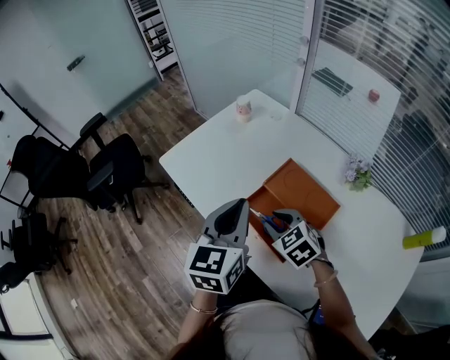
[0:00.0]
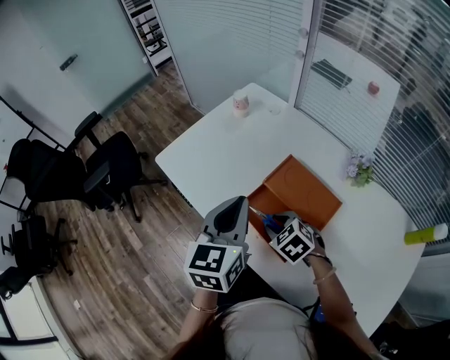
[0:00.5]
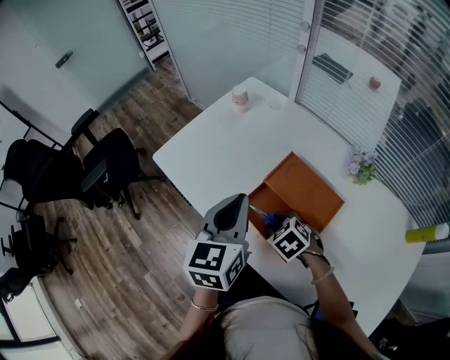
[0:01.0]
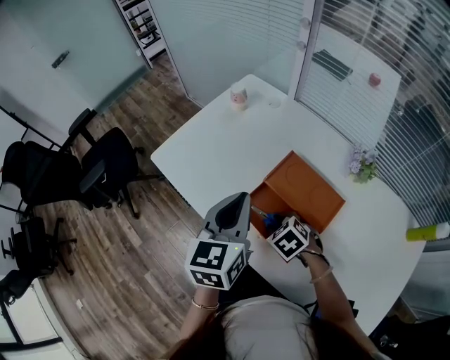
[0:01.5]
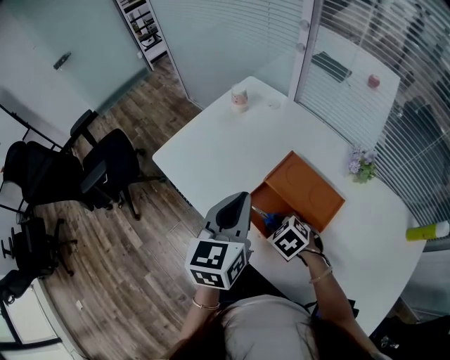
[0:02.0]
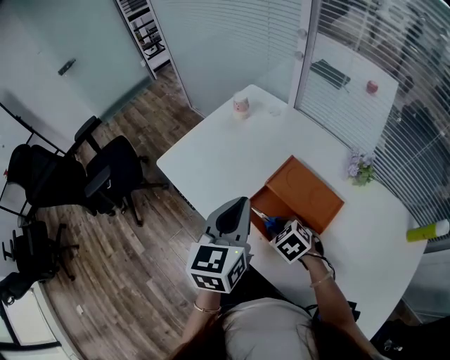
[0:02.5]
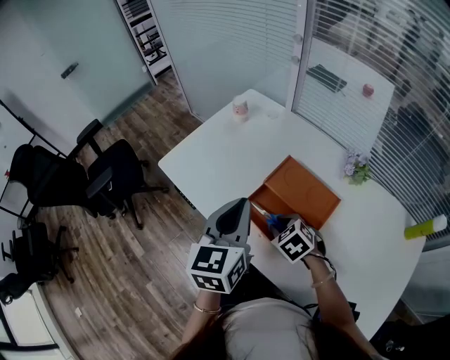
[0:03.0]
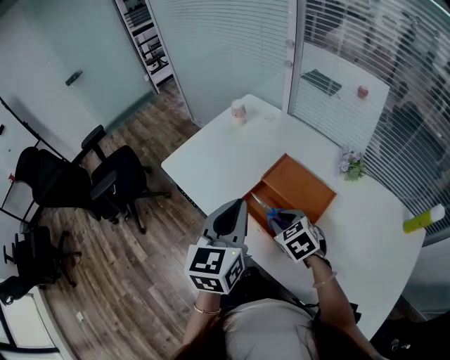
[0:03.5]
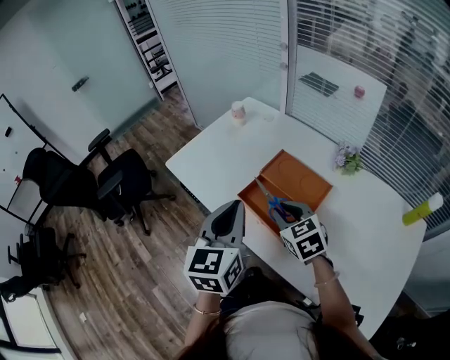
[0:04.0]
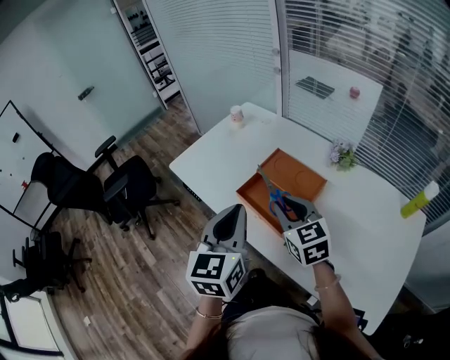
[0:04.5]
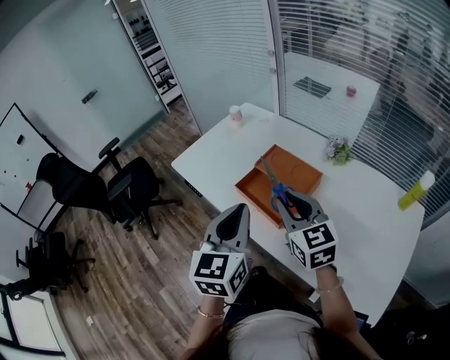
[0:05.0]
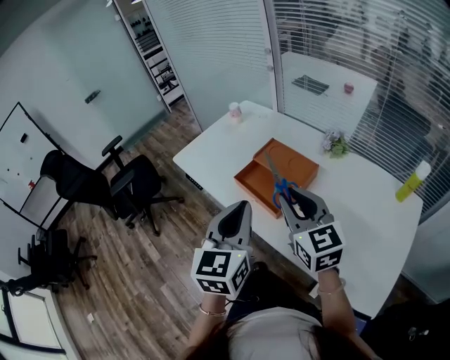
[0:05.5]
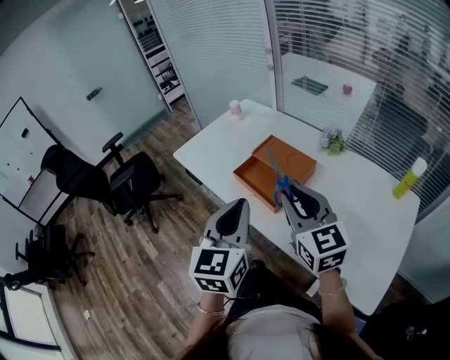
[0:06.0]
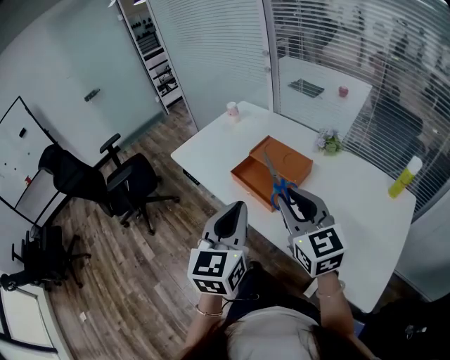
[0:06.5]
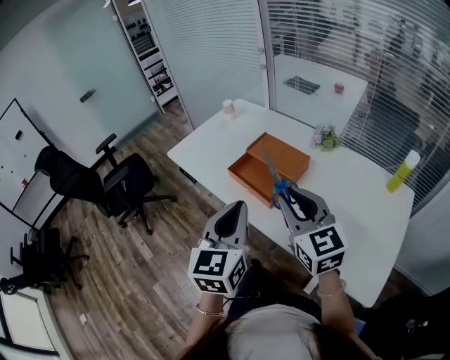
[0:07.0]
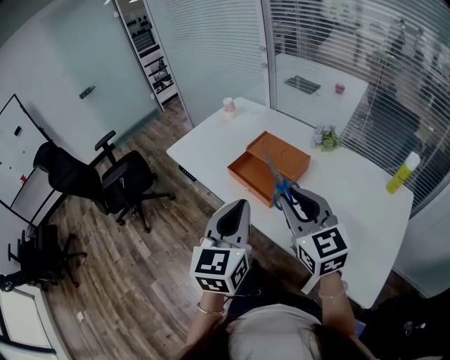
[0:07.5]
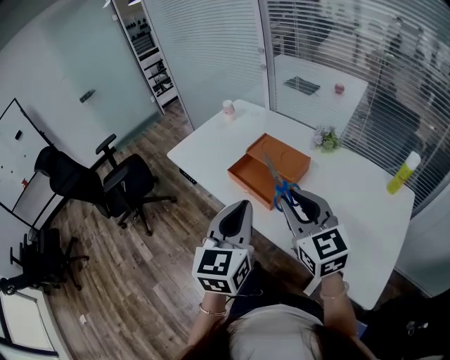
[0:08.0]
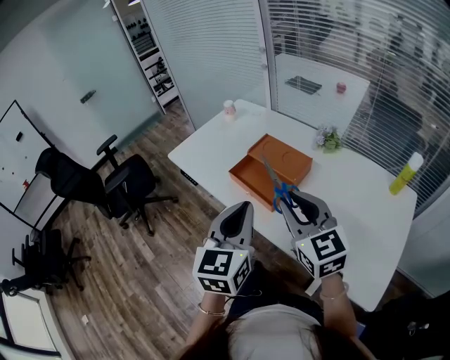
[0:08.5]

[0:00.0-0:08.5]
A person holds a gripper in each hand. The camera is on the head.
0:00.0 to 0:02.0: The right gripper shifts roughly 10 cm downward.
0:02.0 to 0:04.0: The right gripper moves upward, approximately 15 cm, and turns by approximately 30 degrees. Meanwhile the left gripper moves backward, approximately 10 cm.
0:04.0 to 0:06.5: The right gripper goes approximately 25 cm backward and upward, and rotates about 30 degrees. The left gripper shifts roughly 15 cm backward.
0:06.5 to 0:08.5: There are only small adjustments of the grippers.

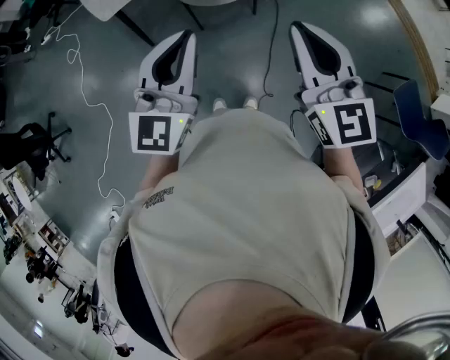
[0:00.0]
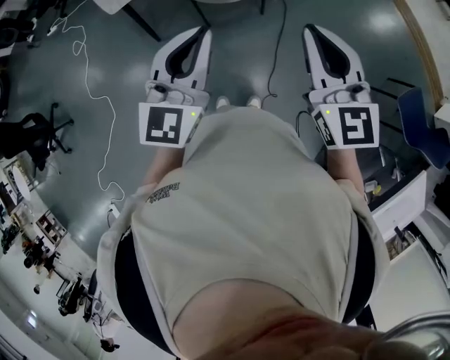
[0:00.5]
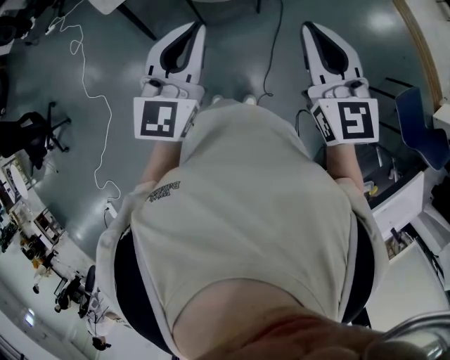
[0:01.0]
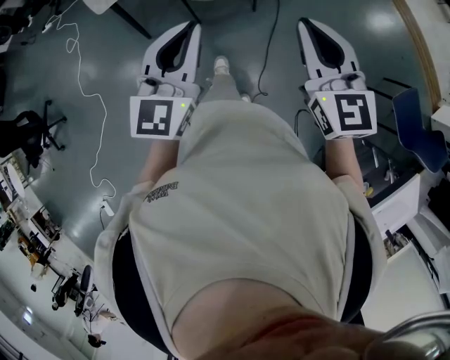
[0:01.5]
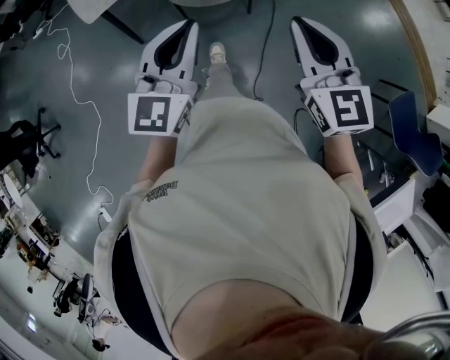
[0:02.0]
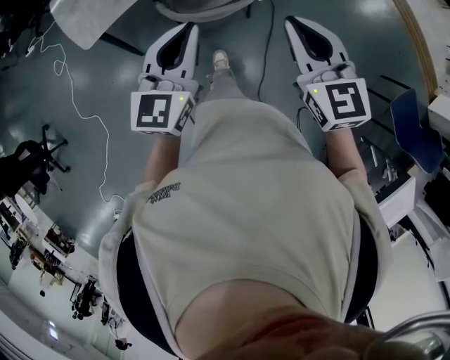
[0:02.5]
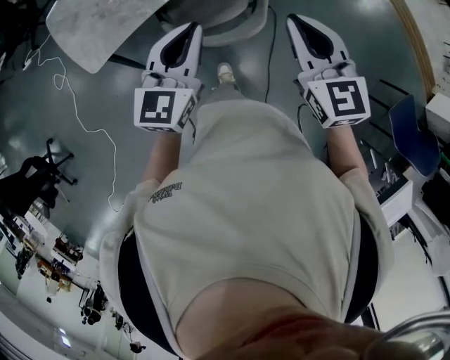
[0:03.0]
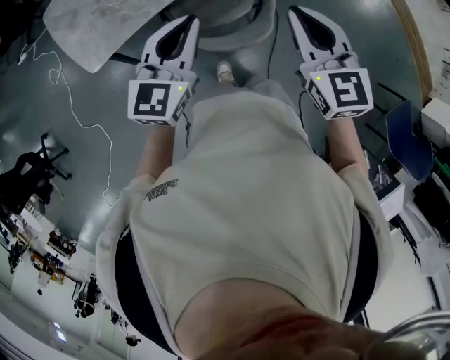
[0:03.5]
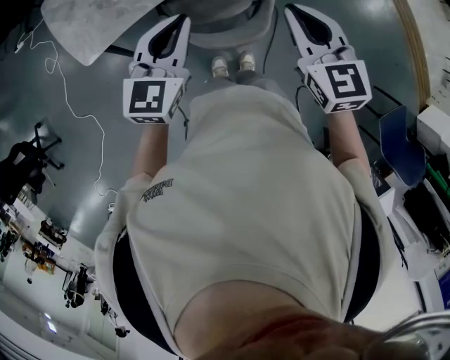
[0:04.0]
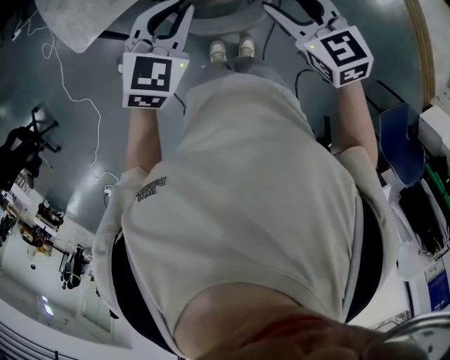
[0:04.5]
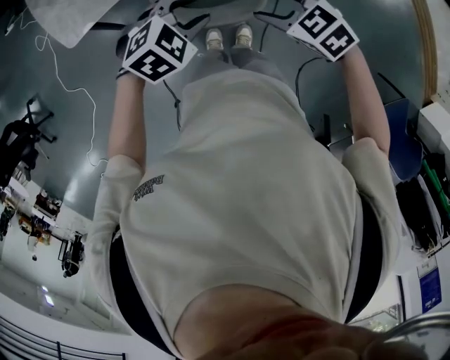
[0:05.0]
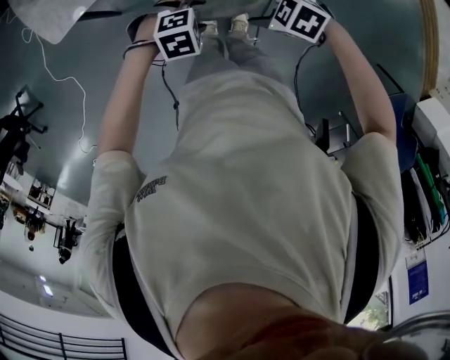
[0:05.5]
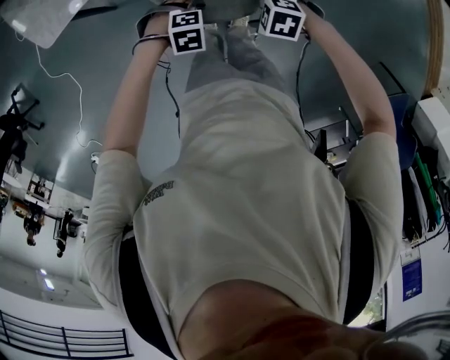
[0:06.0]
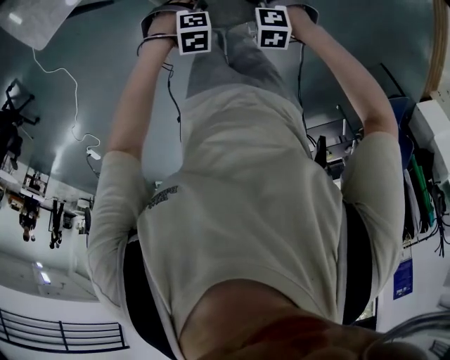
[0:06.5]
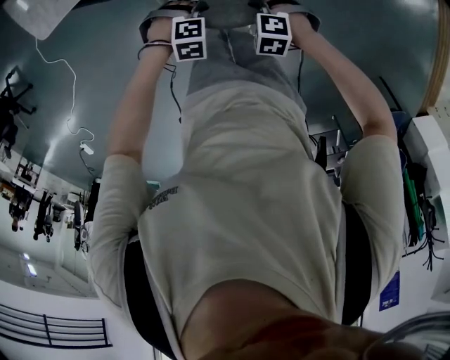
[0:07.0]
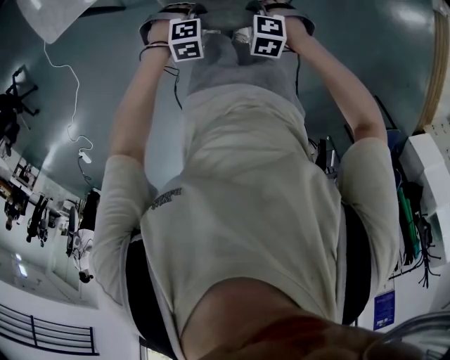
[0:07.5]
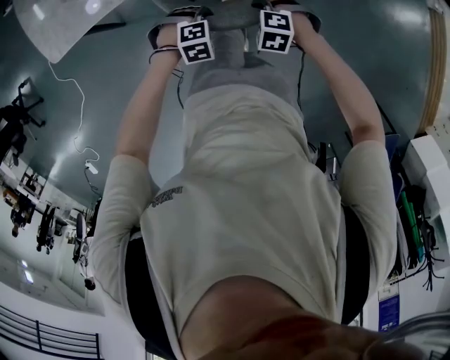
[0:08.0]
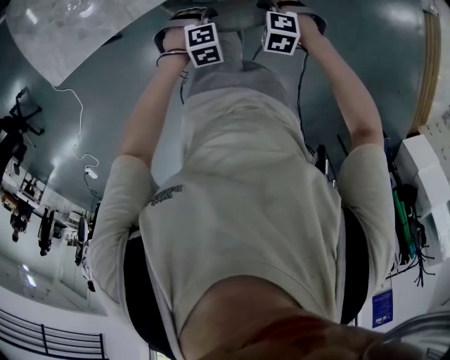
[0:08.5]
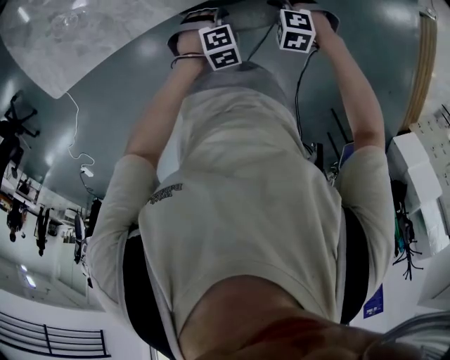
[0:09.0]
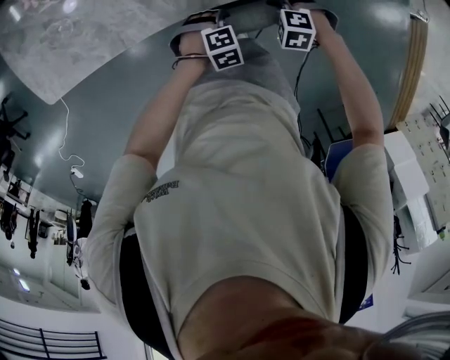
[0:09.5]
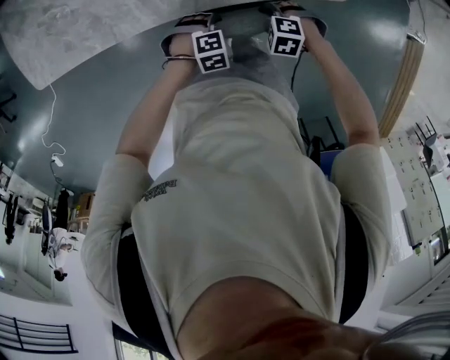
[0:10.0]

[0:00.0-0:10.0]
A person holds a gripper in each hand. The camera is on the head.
0:00.0 to 0:02.0: The two grippers go some 15 cm forward and downward.
0:02.0 to 0:04.0: The grippers both shift forward by about 35 cm.
0:04.0 to 0:06.0: Both grippers move downward, approximately 40 cm. The left gripper tips its fingers downward by roughly 60 degrees, and opens its fingers; the right gripper tilts its fingers approximately 40 degrees downward, and opens.
0:06.0 to 0:08.0: The left gripper ends up roughly 15 cm from where it was, and closes. Meanwhile the right gripper ends up about 15 cm from where it was, changes its angle by some 20 degrees, and closes its fingers.
0:08.0 to 0:10.0: The right gripper moves roughly 25 cm. The left gripper changes place by some 25 cm.

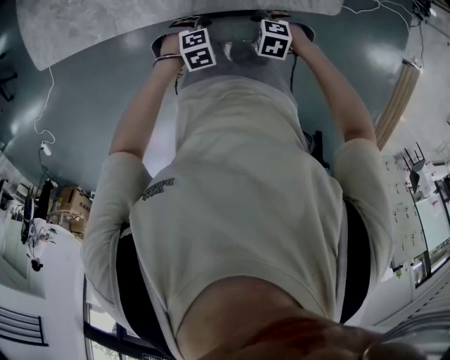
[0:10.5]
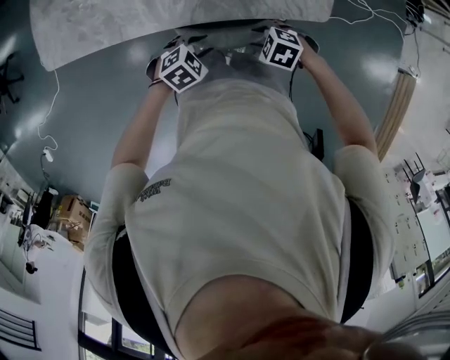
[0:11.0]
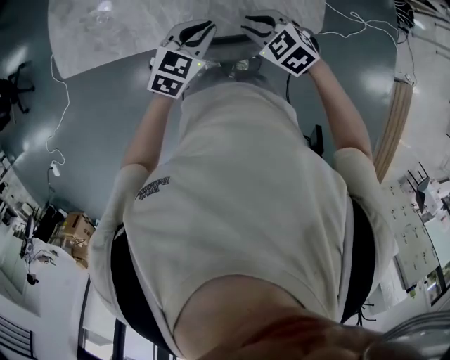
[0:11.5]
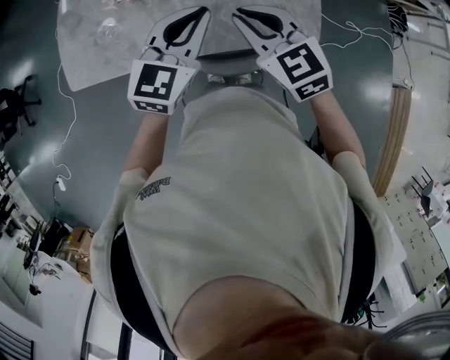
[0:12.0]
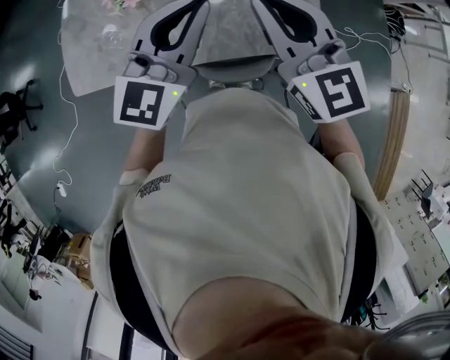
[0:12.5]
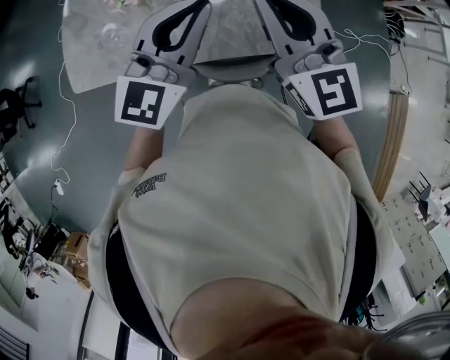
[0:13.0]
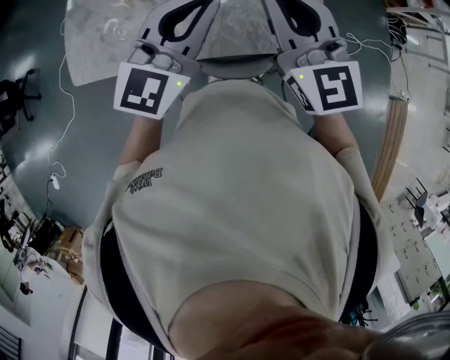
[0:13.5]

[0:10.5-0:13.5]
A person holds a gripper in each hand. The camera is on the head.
0:10.5 to 0:12.0: The grippers both shift upward by some 40 cm. The right gripper tips its fingers upward by roughly 50 degrees, and closes its fingers. Meanwhile the left gripper points its fingers roughly 60 degrees further upward, and closes its fingers.
0:12.0 to 0:13.5: Both grippers move upward, approximately 10 cm. The right gripper swivels about 30 degrees.

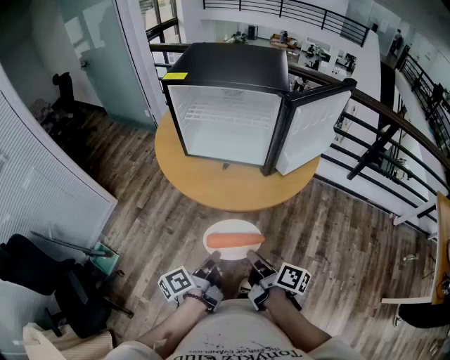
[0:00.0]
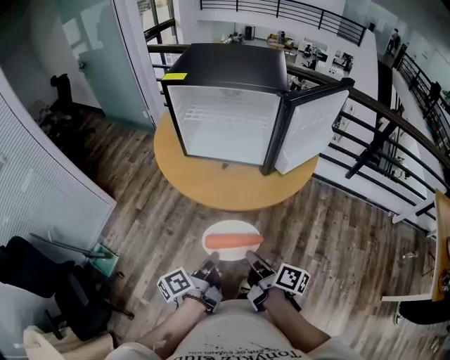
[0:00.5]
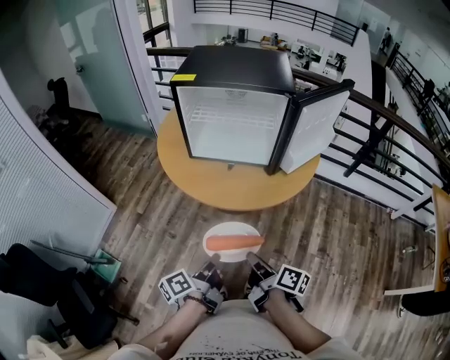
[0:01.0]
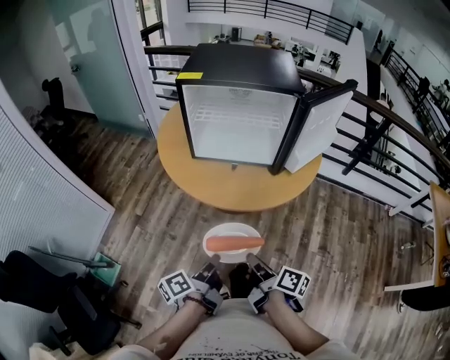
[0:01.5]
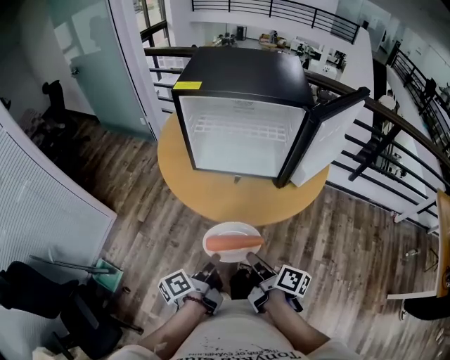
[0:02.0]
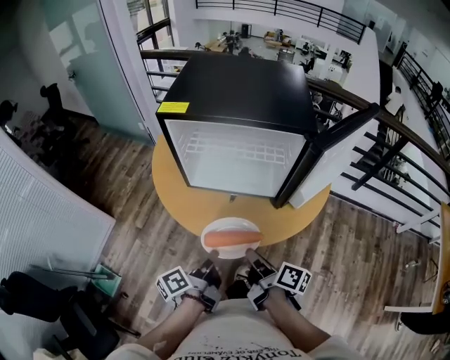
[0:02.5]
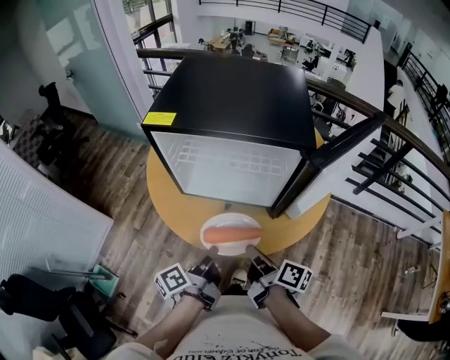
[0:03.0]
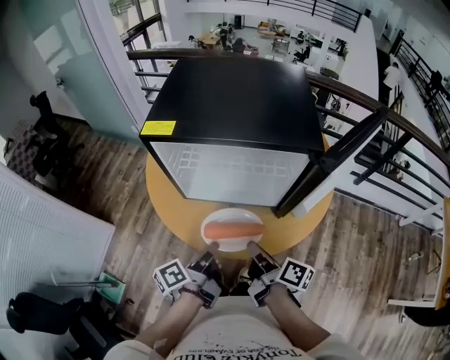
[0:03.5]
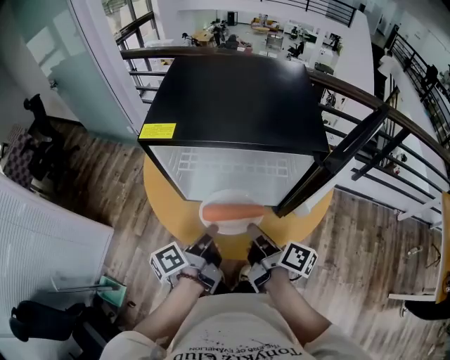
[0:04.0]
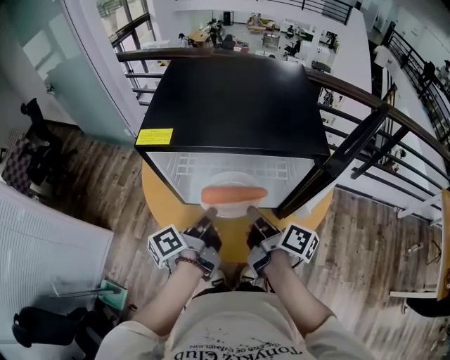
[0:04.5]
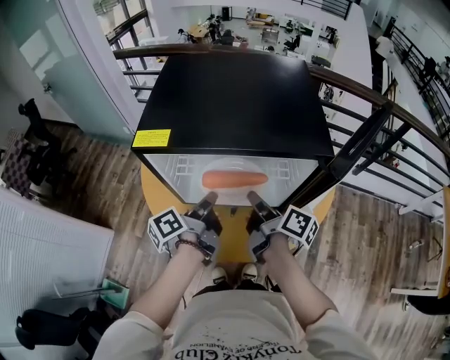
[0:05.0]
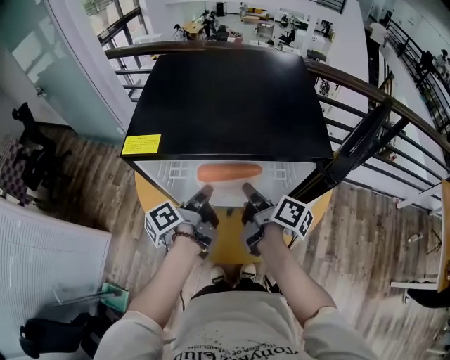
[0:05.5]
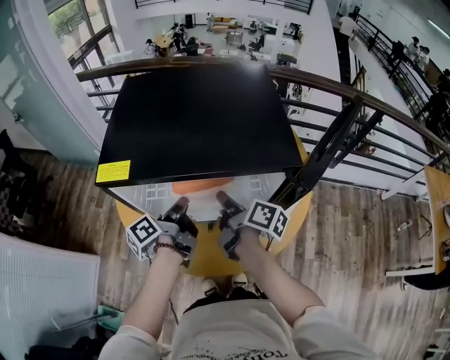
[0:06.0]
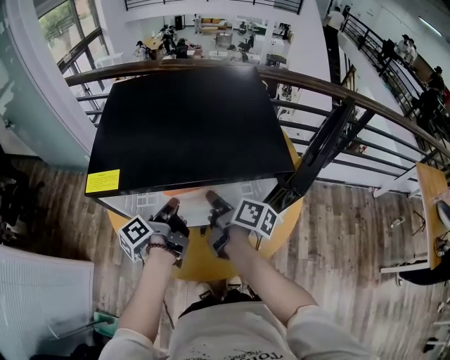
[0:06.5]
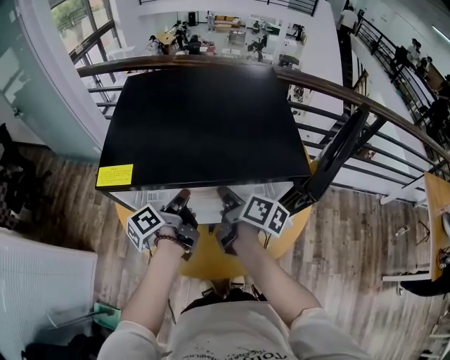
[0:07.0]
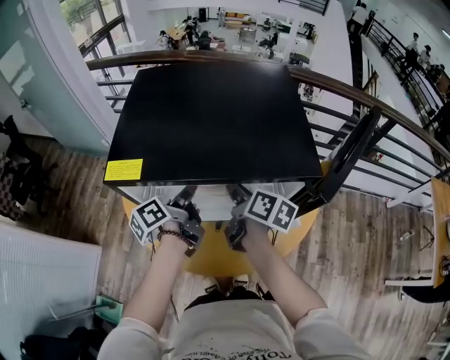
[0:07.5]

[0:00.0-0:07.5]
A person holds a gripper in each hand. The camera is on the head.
0:00.0 to 0:02.0: The right gripper changes place by about 10 cm.
0:02.0 to 0:04.0: The right gripper moves approximately 25 cm.
0:04.0 to 0:05.5: The right gripper shifts by approximately 15 cm.
